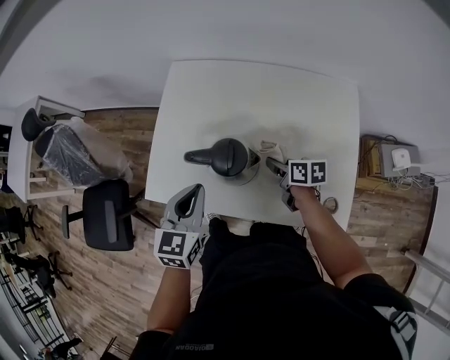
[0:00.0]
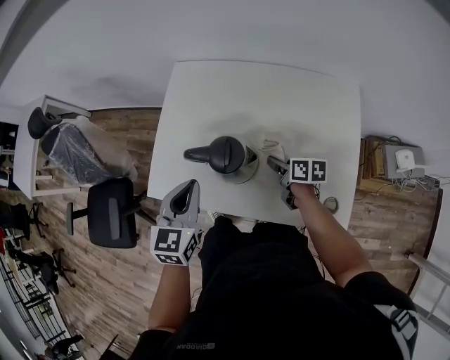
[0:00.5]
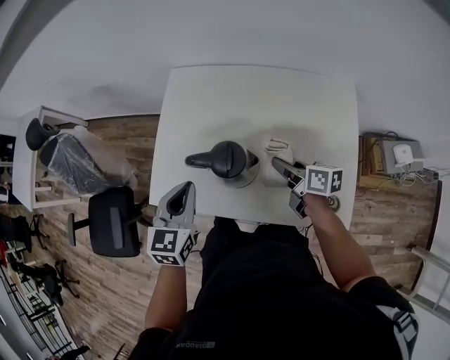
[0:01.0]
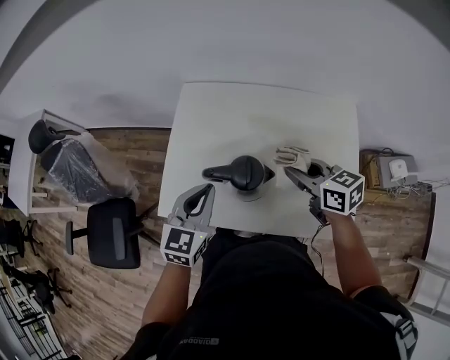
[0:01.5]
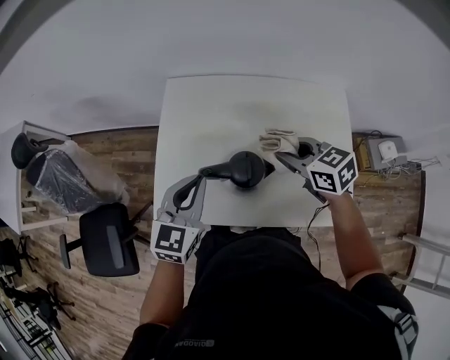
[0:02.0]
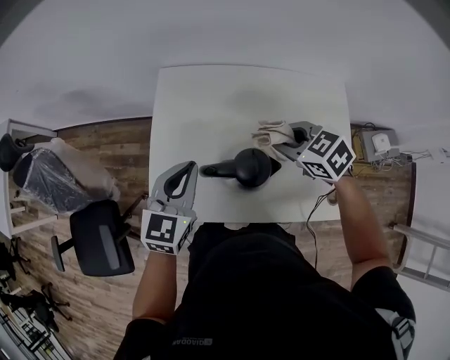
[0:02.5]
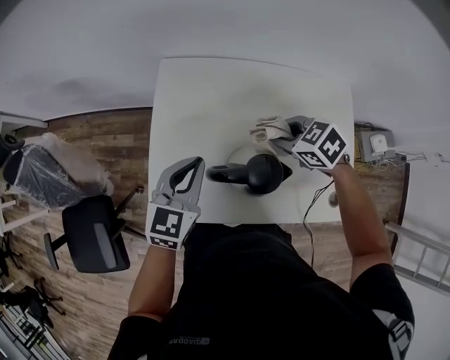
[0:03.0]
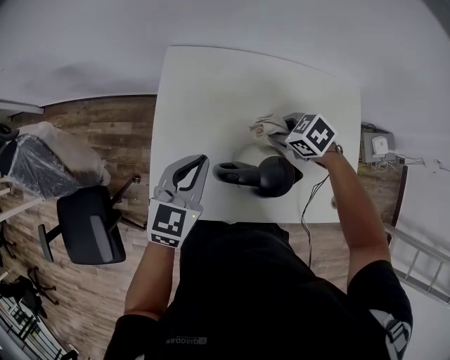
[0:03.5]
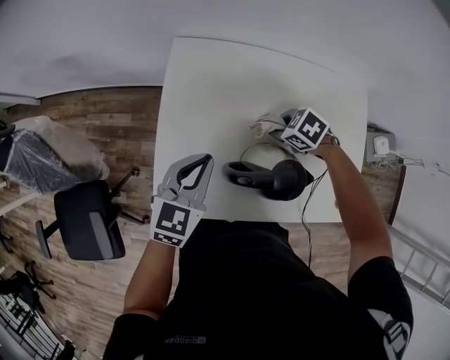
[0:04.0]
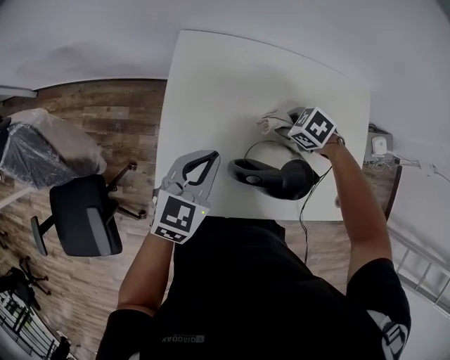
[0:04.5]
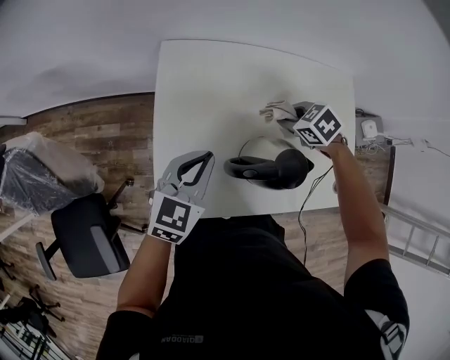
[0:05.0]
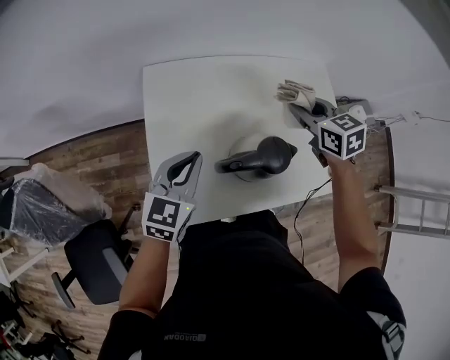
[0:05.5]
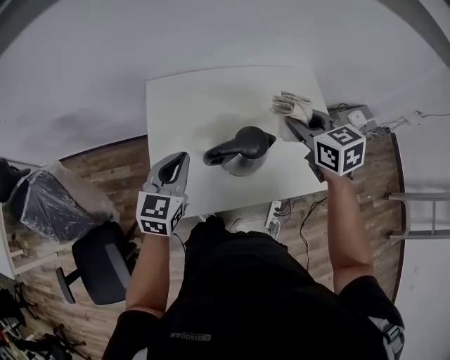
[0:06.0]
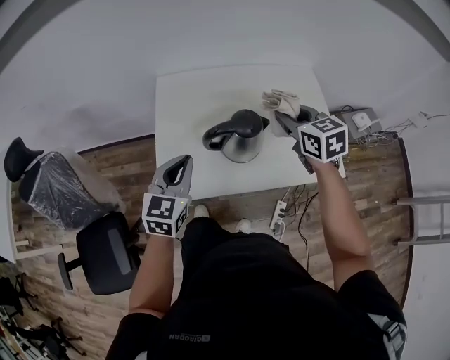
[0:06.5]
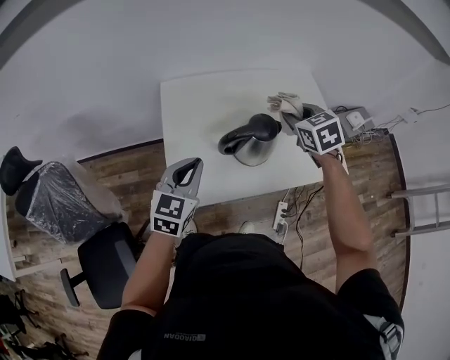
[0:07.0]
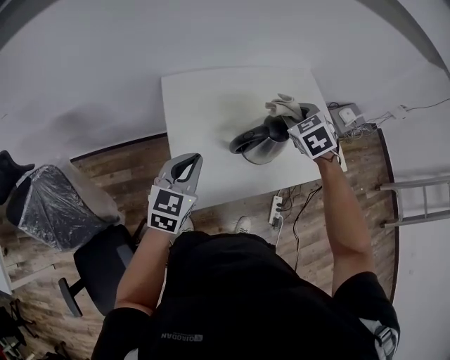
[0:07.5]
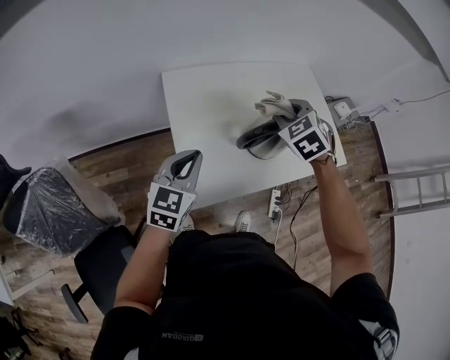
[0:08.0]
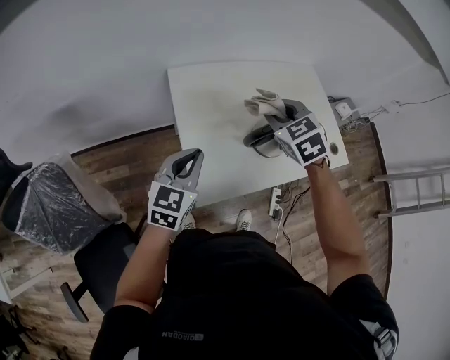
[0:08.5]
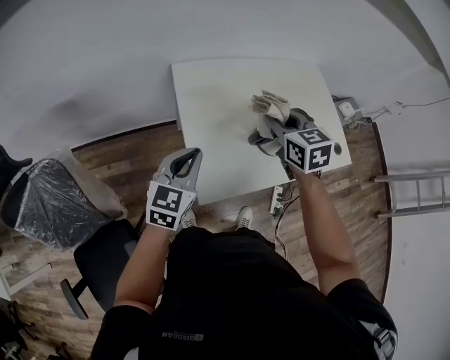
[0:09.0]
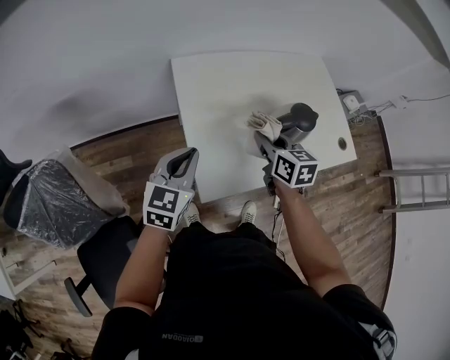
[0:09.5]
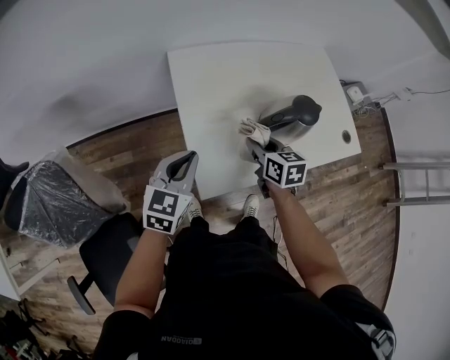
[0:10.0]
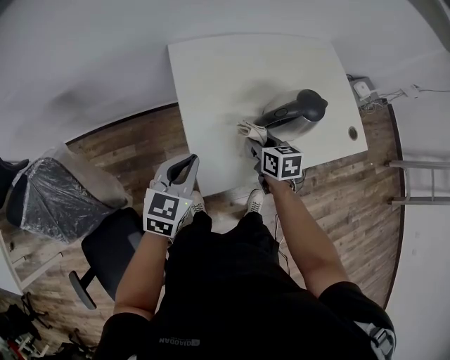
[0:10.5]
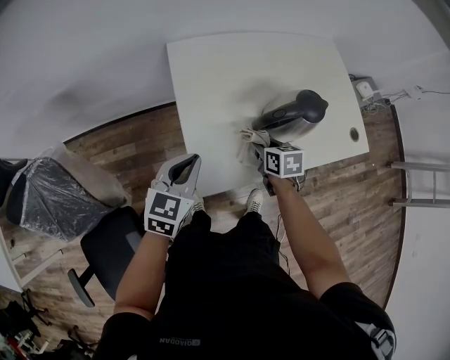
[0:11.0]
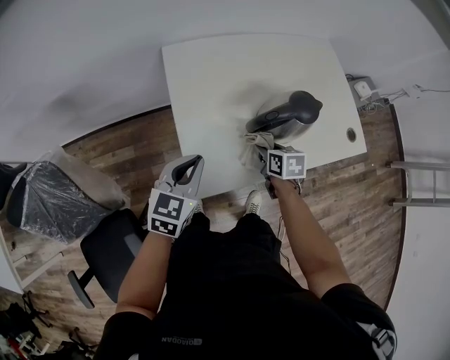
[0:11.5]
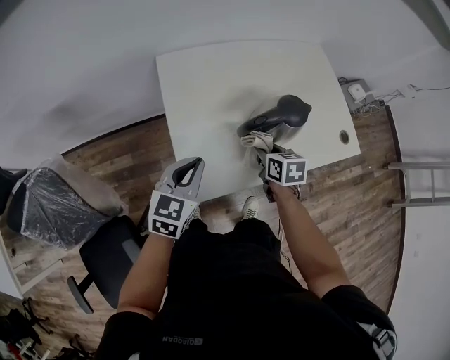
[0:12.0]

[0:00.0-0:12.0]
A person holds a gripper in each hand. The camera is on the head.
0:00.0 to 0:02.0: The left gripper goes approximately 5 cm forward. Meanwhile the right gripper travels upward by about 20 cm, and turns by approximately 40 degrees.
0:02.0 to 0:04.0: The right gripper goes about 20 cm downward, and tilts its fingers roughly 30 degrees downward. Meanwhile the left gripper goes approximately 10 cm downward.
0:04.0 to 0:06.0: The right gripper shifts roughly 25 cm upward, and points its fingers about 40 degrees further upward, while the left gripper moves upward, approximately 5 cm.
0:06.0 to 0:08.0: The left gripper moves to the left and backward, roughly 10 cm, while the right gripper shifts roughly 15 cm to the left, and turns by roughly 40 degrees.
0:08.0 to 0:10.0: The right gripper shifts roughly 15 cm downward and backward, and rolls clockwise, seen from behind, by approximately 50 degrees. Meanwhile the left gripper is displaced downward by approximately 5 cm.
0:10.0 to 0:12.0: The two grippers go roughly 5 cm to the right.

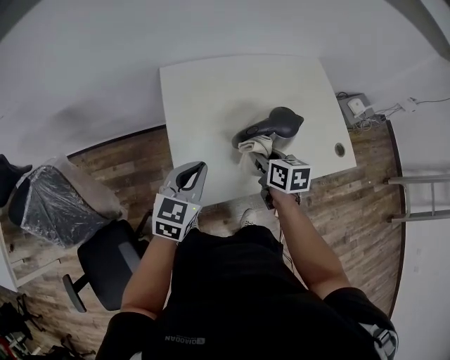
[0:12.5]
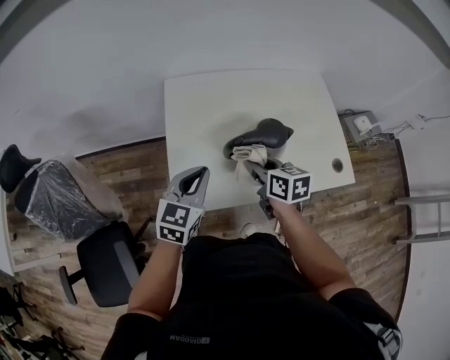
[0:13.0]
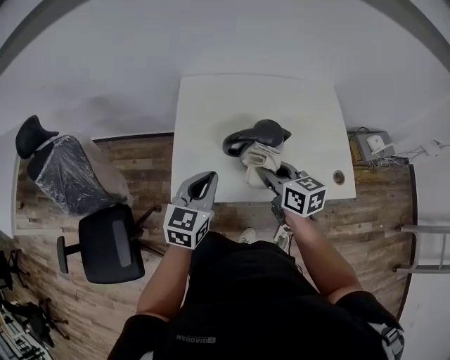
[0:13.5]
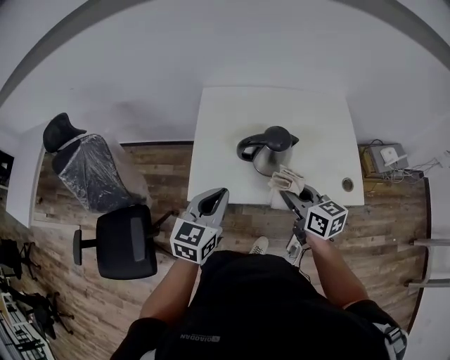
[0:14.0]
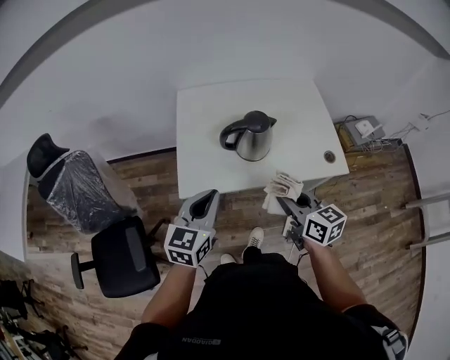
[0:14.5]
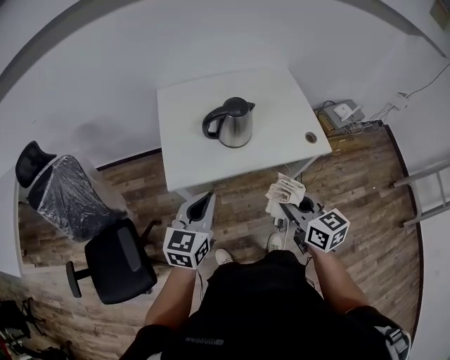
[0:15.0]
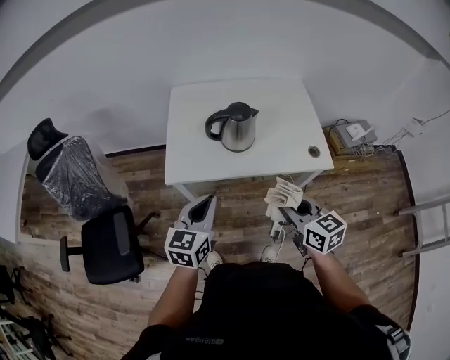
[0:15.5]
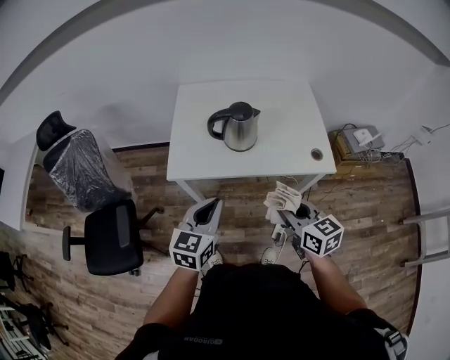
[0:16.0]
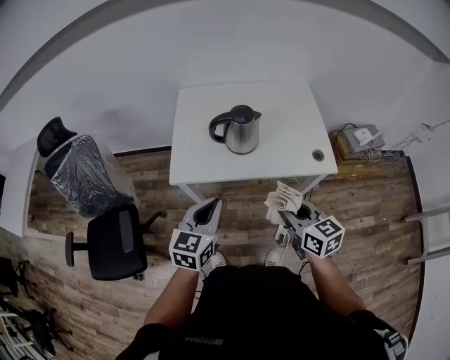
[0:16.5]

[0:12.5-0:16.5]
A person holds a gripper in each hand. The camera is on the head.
0:12.5 to 0:14.5: The two grippers go approximately 25 cm backward, upward and to the right. The right gripper changes its angle by approximately 20 degrees.
0:14.5 to 0:16.5: The grippers both shift backward and to the right by some 10 cm.

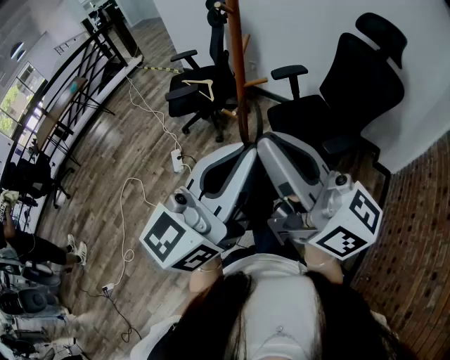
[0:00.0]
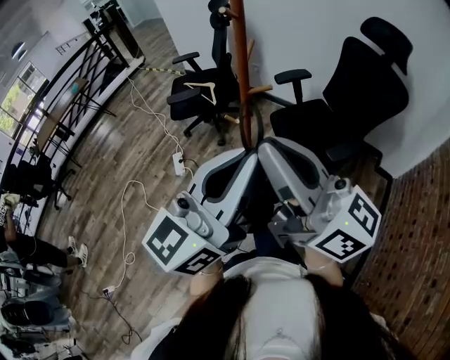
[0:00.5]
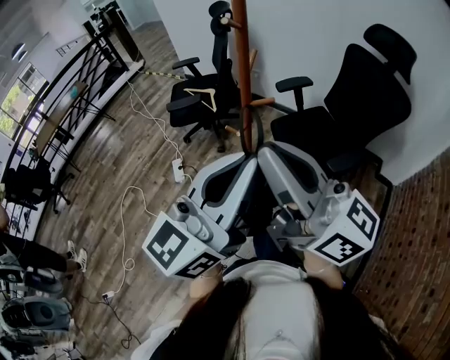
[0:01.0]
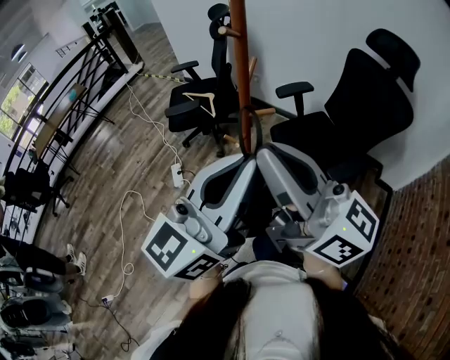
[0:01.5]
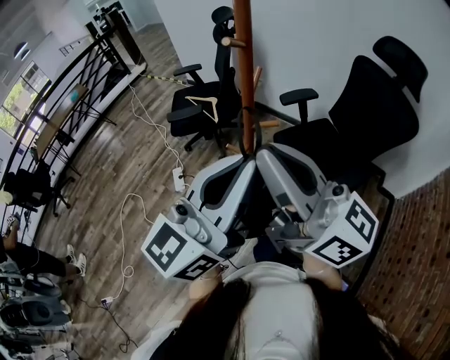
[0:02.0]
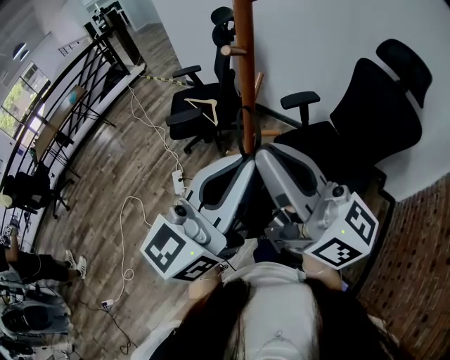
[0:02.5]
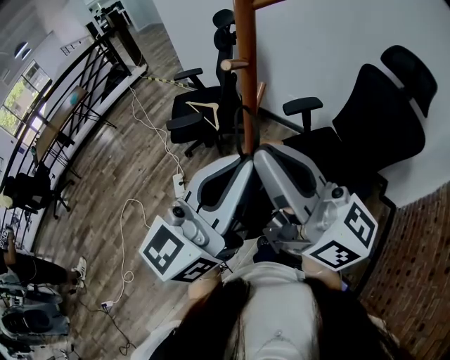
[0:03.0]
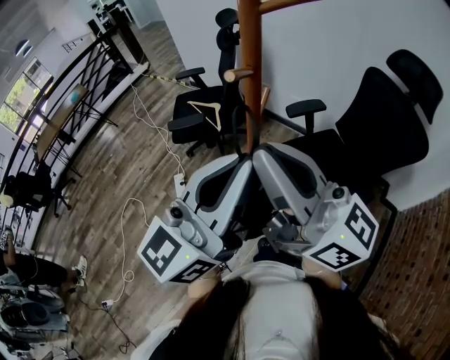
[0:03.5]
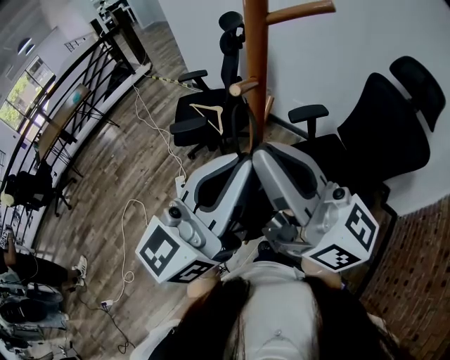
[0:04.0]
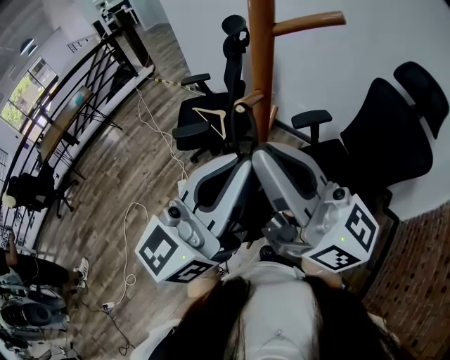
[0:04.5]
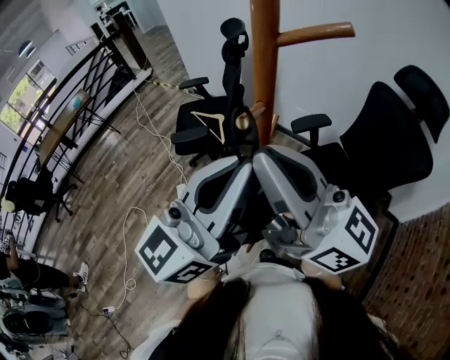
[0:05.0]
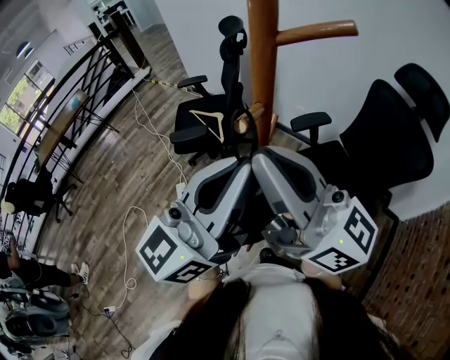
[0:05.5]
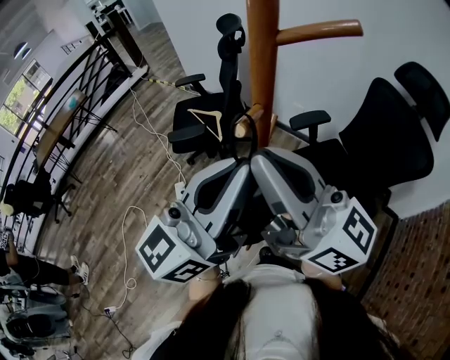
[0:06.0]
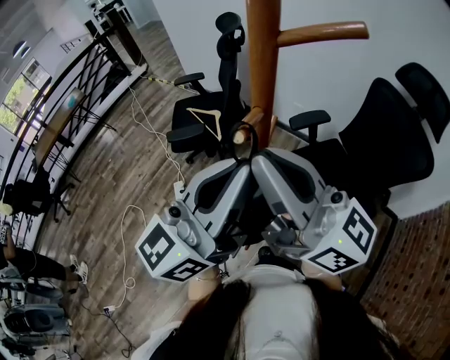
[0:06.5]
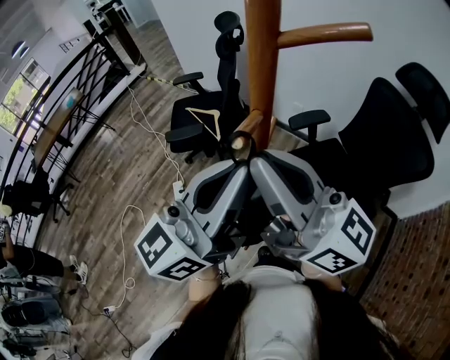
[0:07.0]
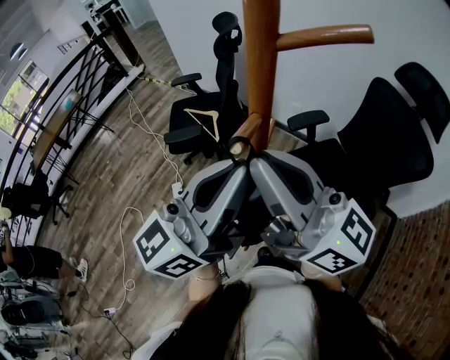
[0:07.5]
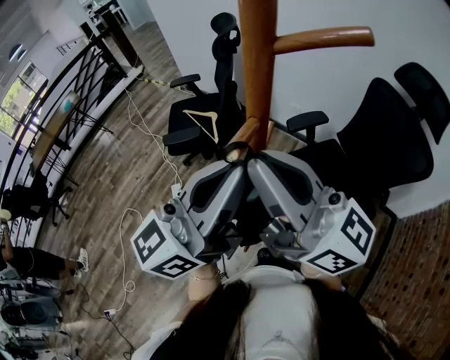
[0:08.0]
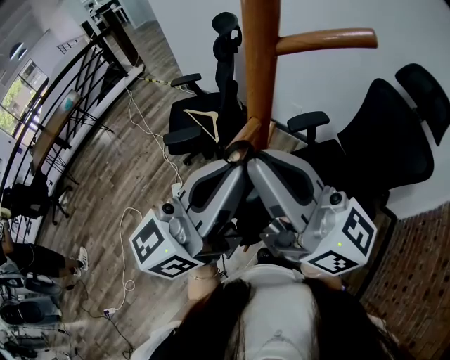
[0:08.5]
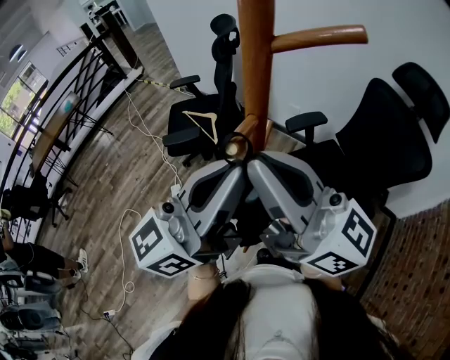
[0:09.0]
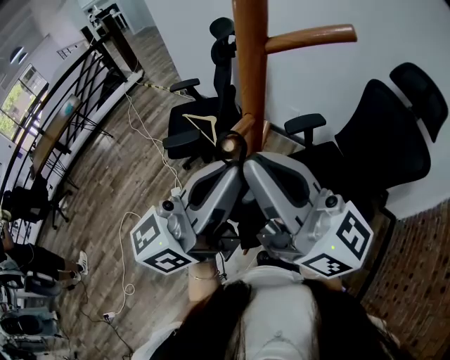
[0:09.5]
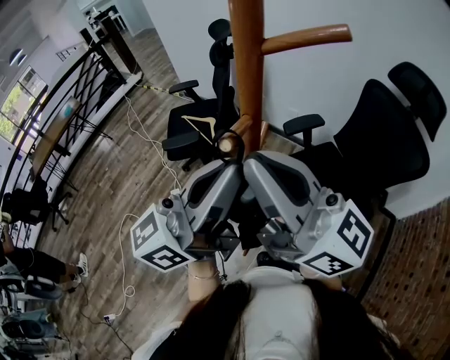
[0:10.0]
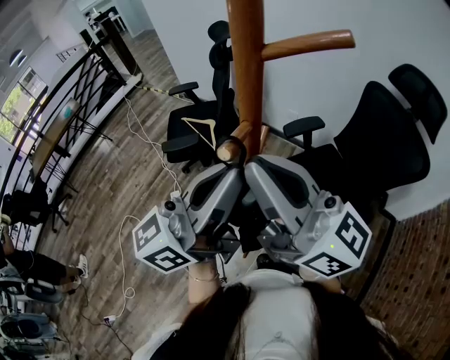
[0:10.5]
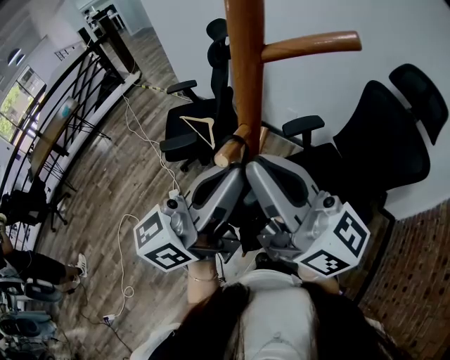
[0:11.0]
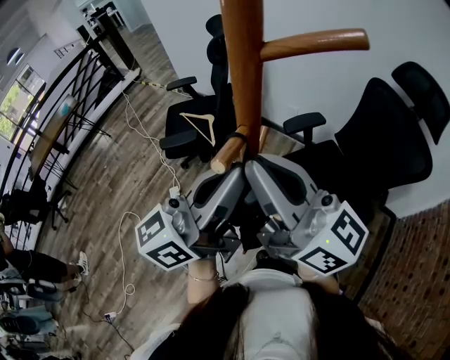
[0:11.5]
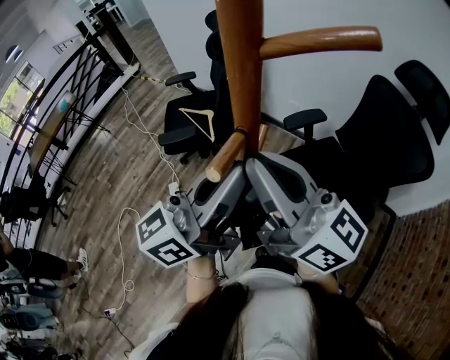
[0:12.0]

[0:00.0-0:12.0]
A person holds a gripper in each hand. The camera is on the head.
0:00.0 to 0:02.0: Both grippers travel together forward, about 10 cm.
0:02.0 to 0:04.0: The two grippers go some 10 cm forward.
0:04.0 to 0:06.0: Both grippers travel together forward, some 5 cm.
0:06.0 to 0:10.0: There are only small adjustments of the grippers.
0:10.0 to 0:12.0: The left gripper changes place by approximately 5 cm; the right gripper moves approximately 5 cm.
